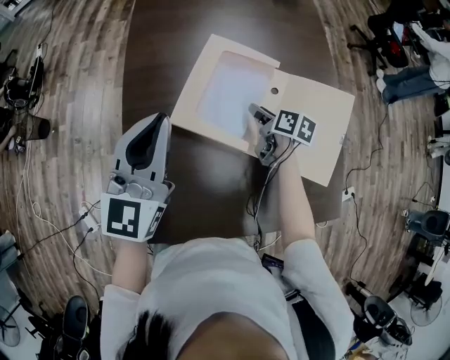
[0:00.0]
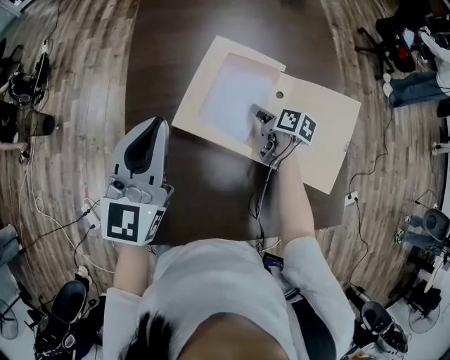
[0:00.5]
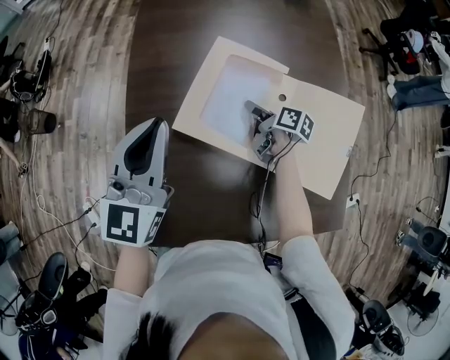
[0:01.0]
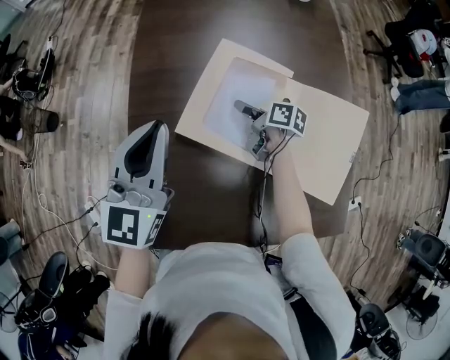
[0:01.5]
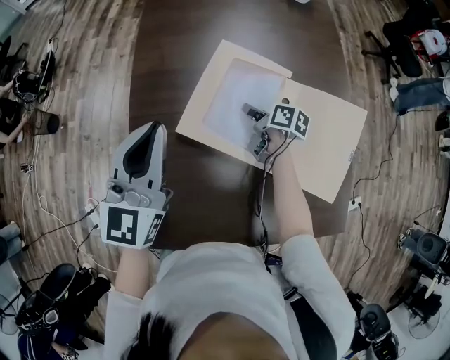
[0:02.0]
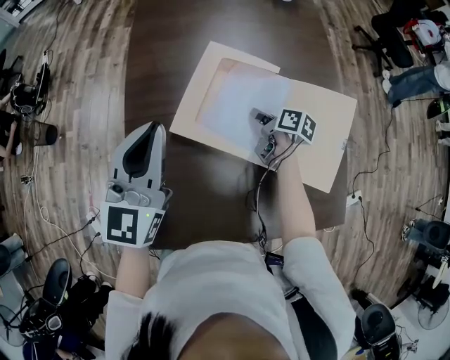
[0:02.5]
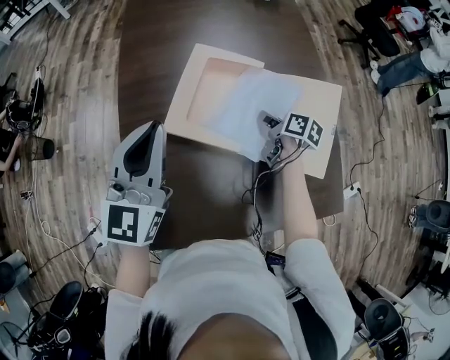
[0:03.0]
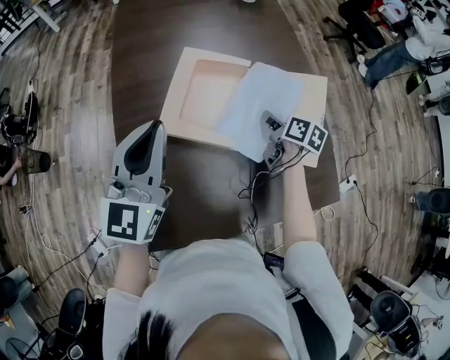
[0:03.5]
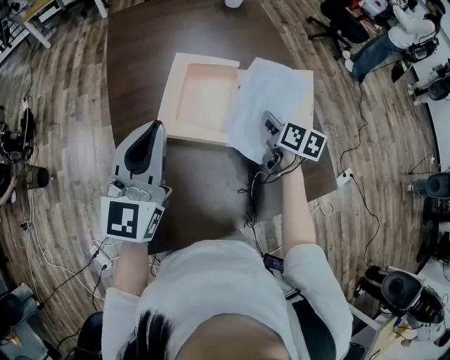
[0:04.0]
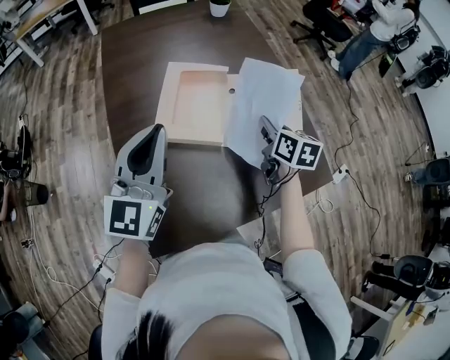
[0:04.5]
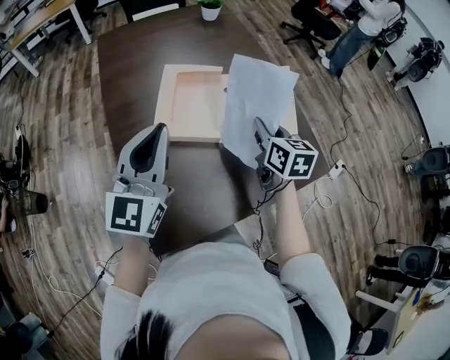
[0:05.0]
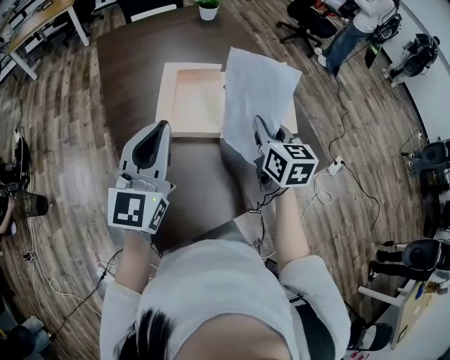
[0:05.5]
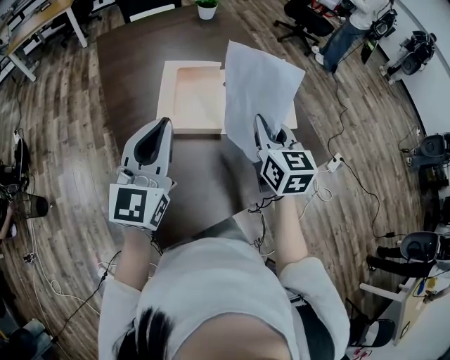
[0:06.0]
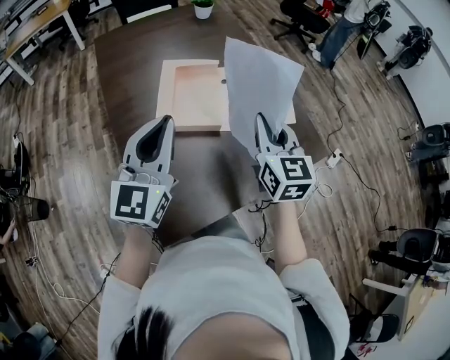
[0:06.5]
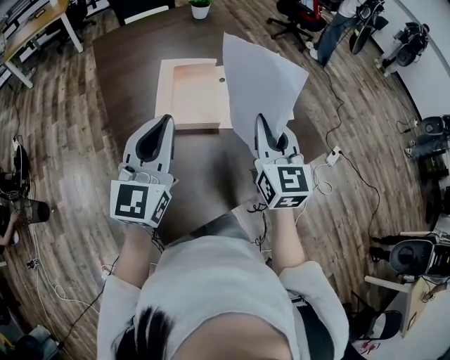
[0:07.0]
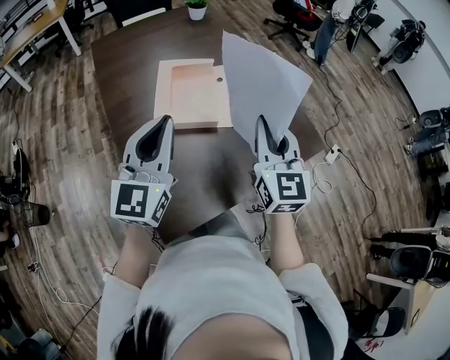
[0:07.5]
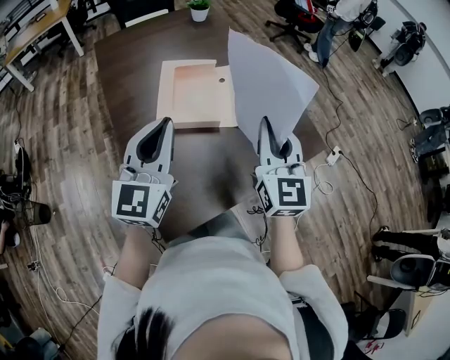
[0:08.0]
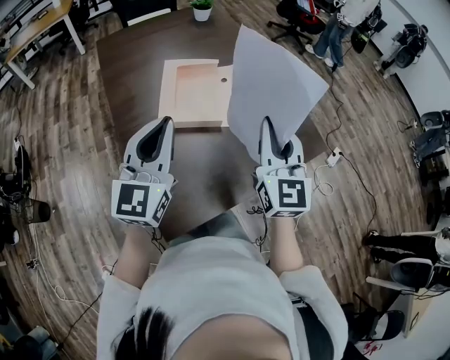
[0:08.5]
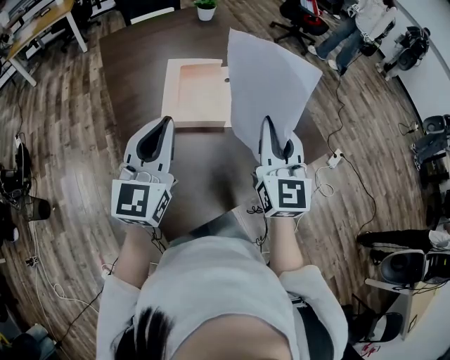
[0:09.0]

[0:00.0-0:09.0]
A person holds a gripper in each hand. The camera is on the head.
0:00.0 to 0:02.0: The right gripper goes approximately 5 cm forward and to the left, and closes its fingers.
0:02.0 to 0:04.5: The left gripper ends up some 15 cm from where it was. The right gripper shifts by roughly 30 cm, and swivels about 40 degrees.
0:04.5 to 0:07.0: The left gripper travels backward by some 5 cm; the right gripper is displaced backward and upward by some 20 cm, and swivels some 40 degrees.
0:07.0 to 0:09.0: The grippers stay close to where they were, moving slightly.

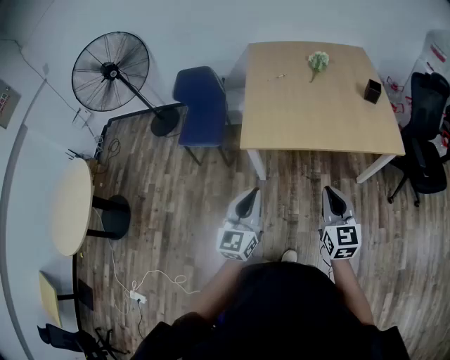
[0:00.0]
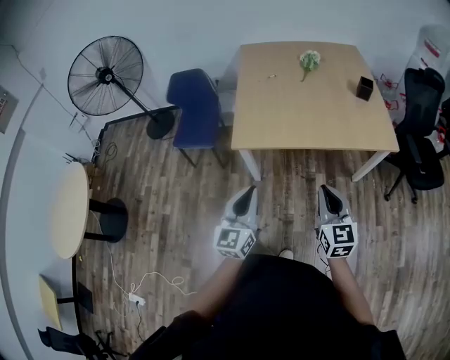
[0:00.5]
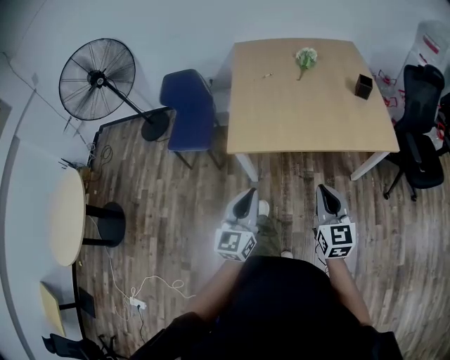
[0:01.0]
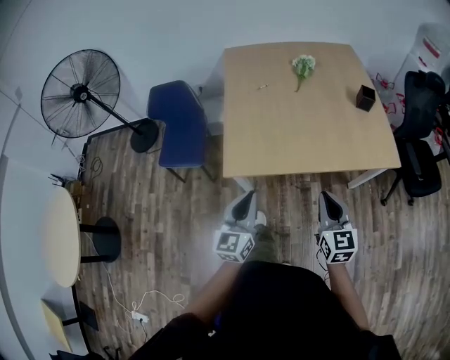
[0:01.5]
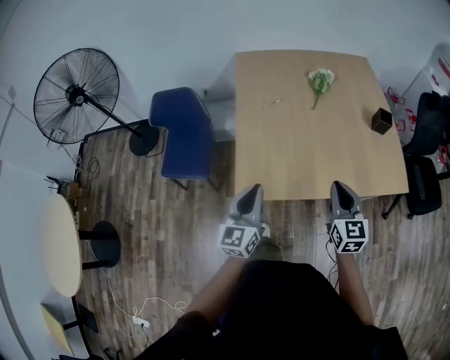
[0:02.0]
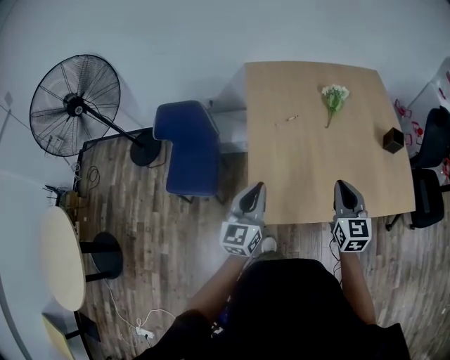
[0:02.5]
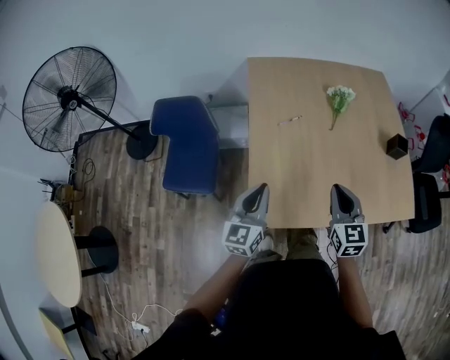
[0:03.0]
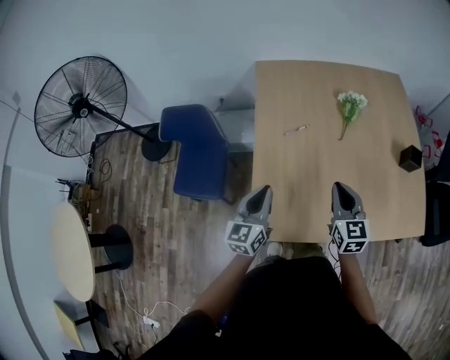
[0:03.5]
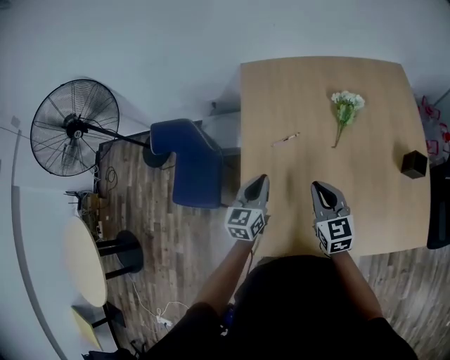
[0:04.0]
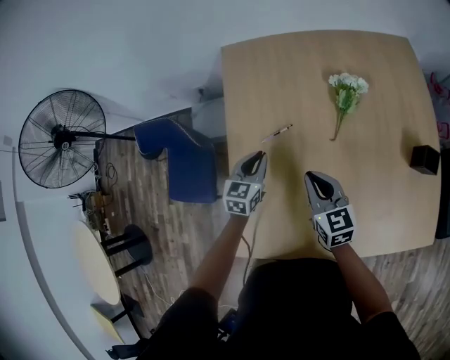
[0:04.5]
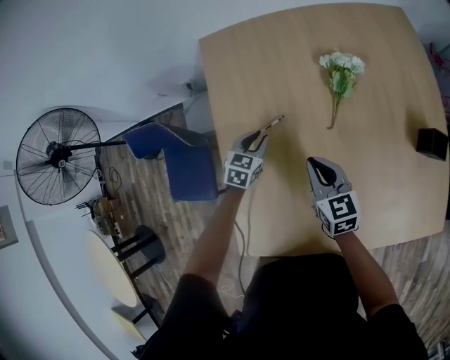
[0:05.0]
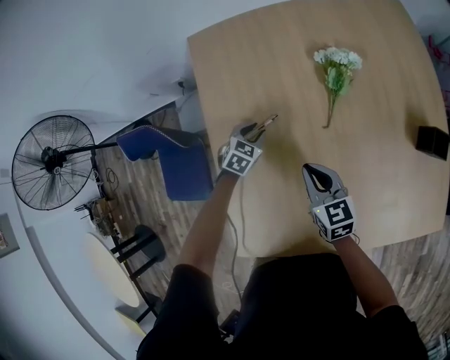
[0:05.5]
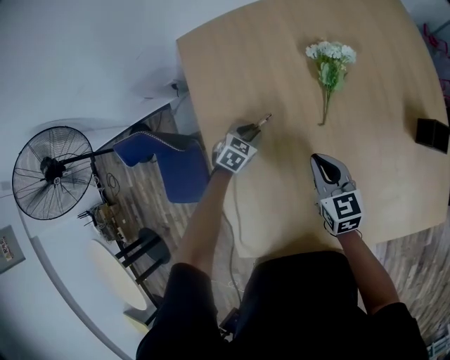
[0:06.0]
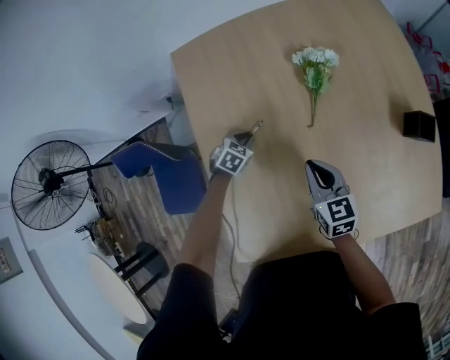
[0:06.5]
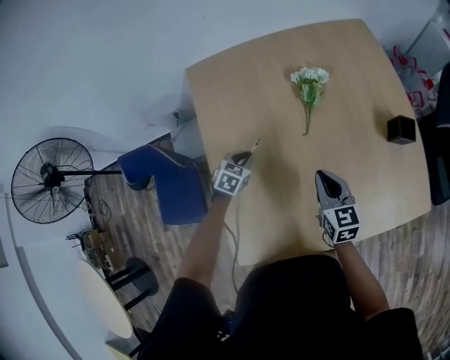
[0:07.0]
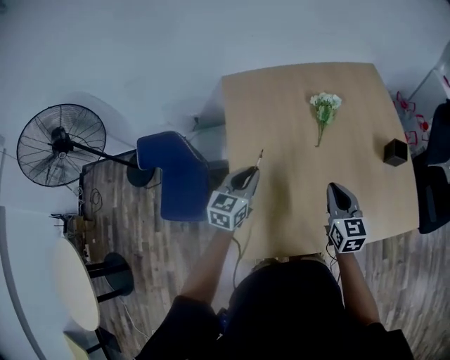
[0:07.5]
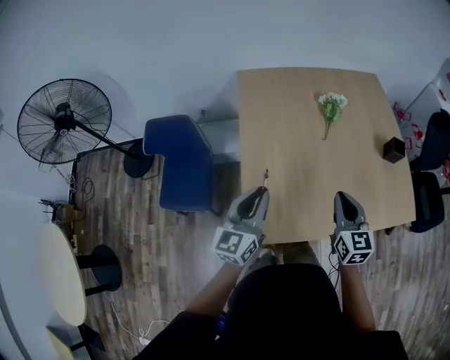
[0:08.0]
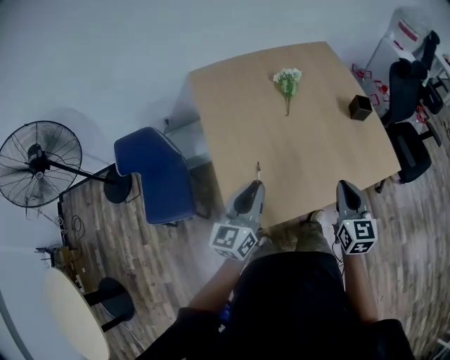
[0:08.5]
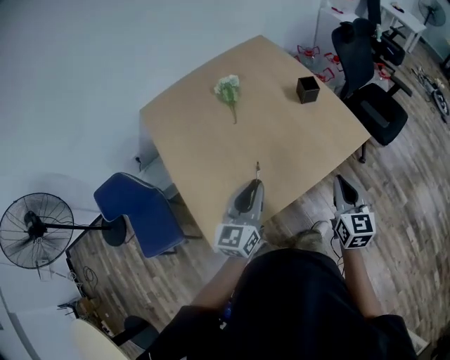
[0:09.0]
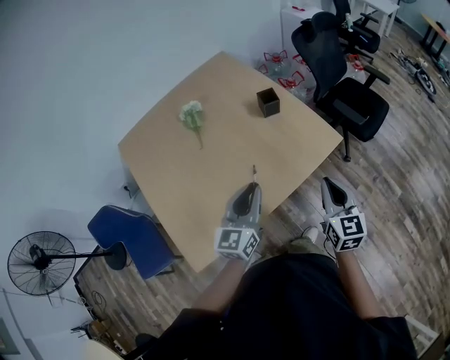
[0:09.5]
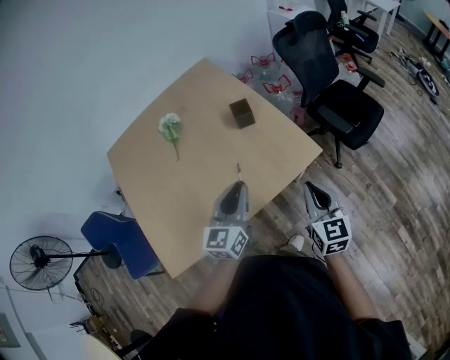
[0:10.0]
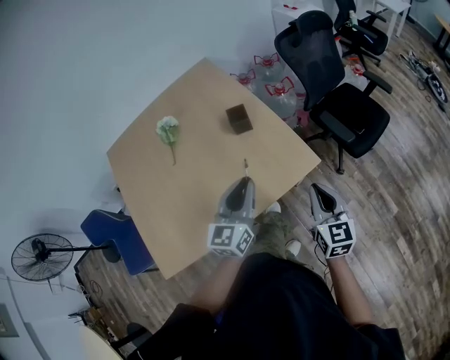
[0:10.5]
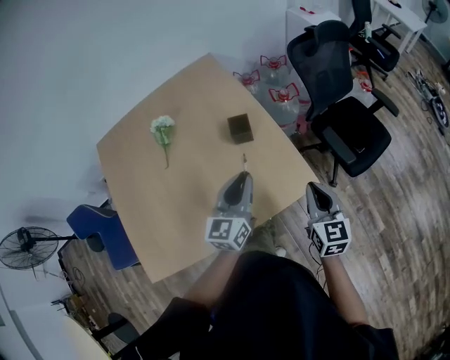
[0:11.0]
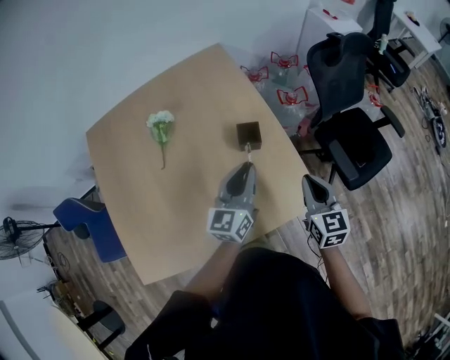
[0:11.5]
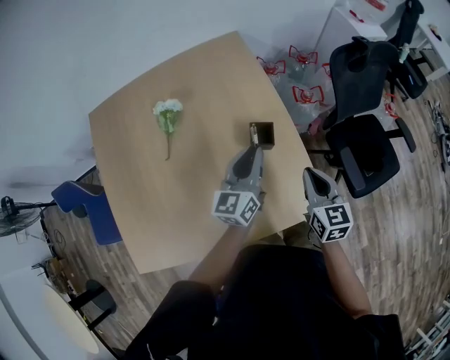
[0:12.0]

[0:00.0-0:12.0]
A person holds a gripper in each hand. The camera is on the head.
0:00.0 to 0:02.0: The grippers both shift forward by roughly 35 cm.
0:02.0 to 0:04.0: The two grippers go roughly 35 cm forward.
0:04.0 to 0:06.0: The right gripper travels downward, forward and to the right by roughly 25 cm. The left gripper moves downward and forward, approximately 35 cm, tips its fingers downward by some 40 degrees, and opens its fingers.
0:06.0 to 0:08.0: Both grippers travel together backward and upward, about 50 cm. The right gripper turns by approximately 20 degrees. The left gripper angles its fingers upward, by approximately 60 degrees.
0:08.0 to 0:10.0: The two grippers travel together, roughly 60 cm. The right gripper turns by about 20 degrees; the left gripper turns by roughly 20 degrees.
0:10.0 to 0:12.0: Both grippers travel together forward, about 35 cm.

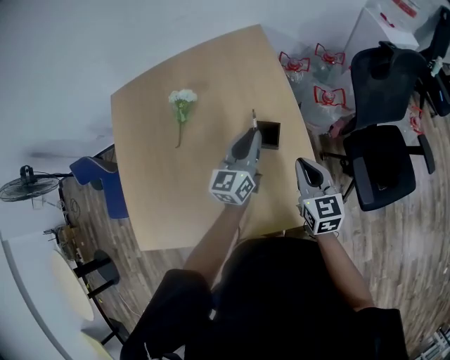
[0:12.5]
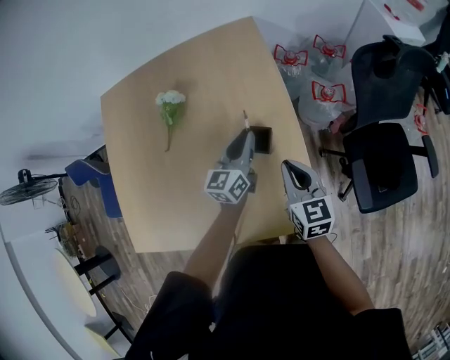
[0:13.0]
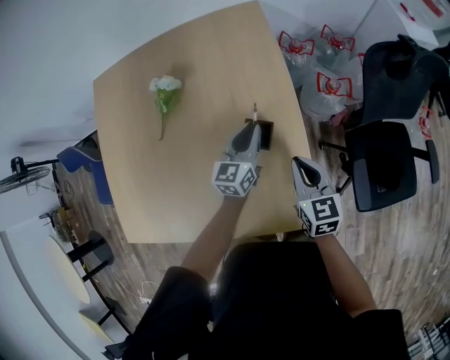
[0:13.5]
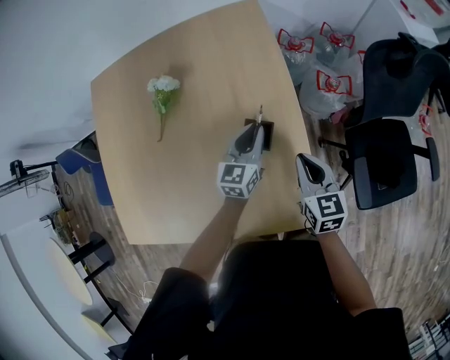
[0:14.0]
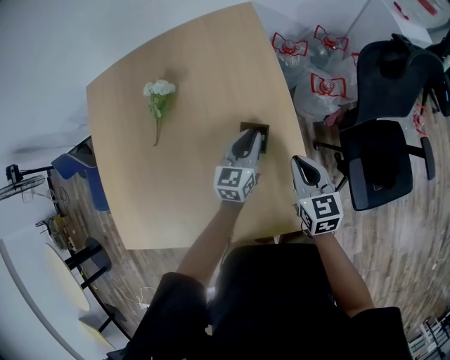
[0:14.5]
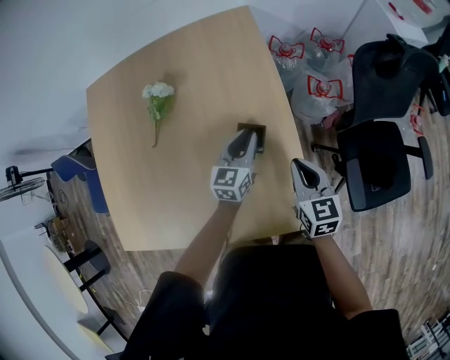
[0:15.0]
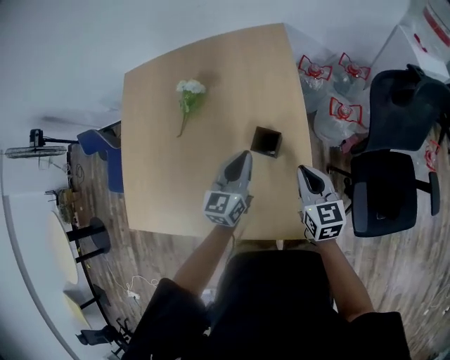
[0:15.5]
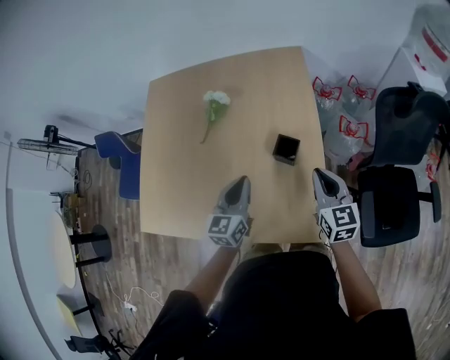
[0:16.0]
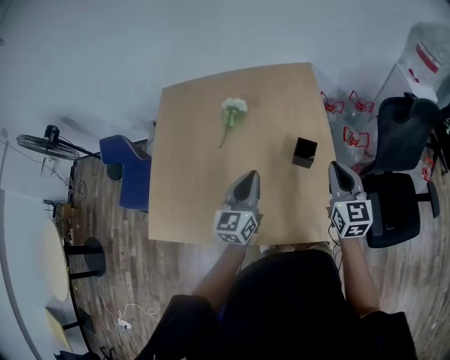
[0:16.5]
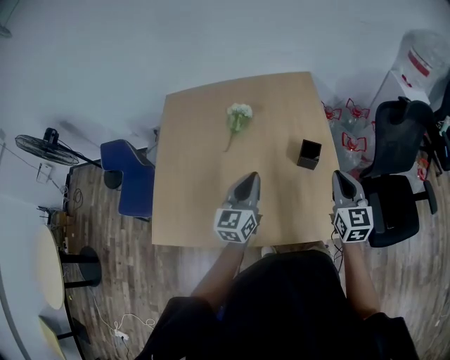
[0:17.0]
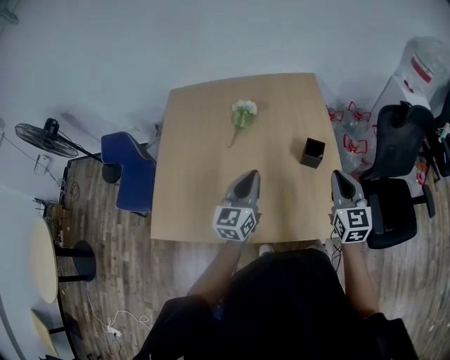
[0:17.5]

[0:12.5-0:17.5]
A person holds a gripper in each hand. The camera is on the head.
0:12.5 to 0:15.0: The right gripper goes approximately 10 cm downward and forward, while the left gripper is displaced downward by about 15 cm.
0:15.0 to 0:17.5: The right gripper is displaced upward, backward and to the left by roughly 30 cm, and changes its angle by approximately 20 degrees. The left gripper heads to the left, backward and upward, covering roughly 40 cm.

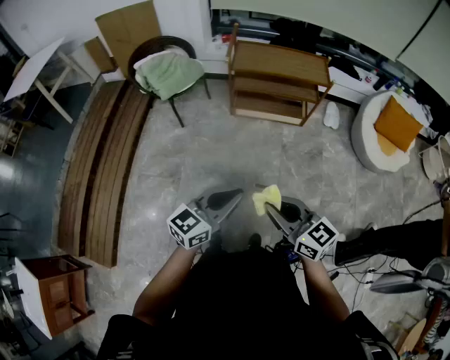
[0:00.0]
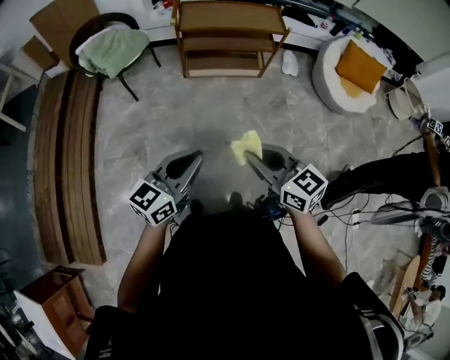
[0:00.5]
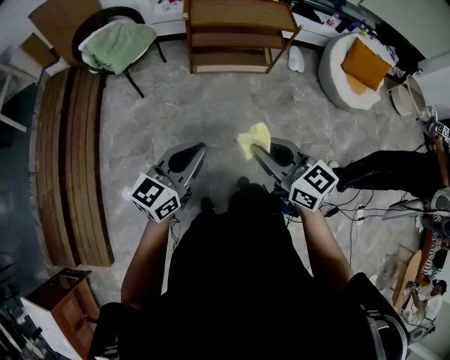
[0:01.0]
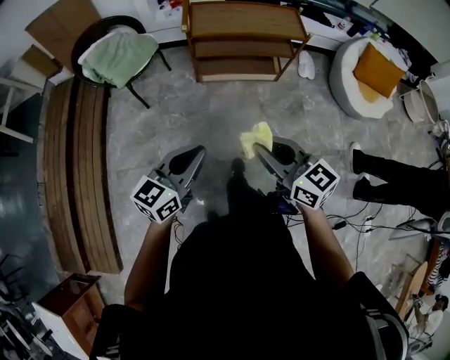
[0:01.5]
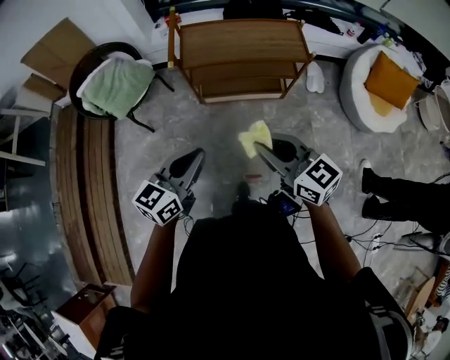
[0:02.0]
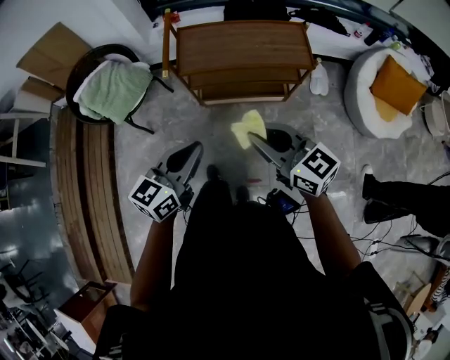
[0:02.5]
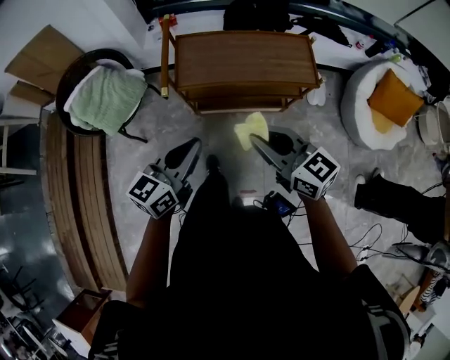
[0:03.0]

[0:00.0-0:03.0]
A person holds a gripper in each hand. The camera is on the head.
0:00.0 to 0:01.5: The left gripper goes approximately 15 cm forward and to the left; the right gripper moves forward, some 15 cm.
0:01.5 to 0:03.0: Both grippers move forward, about 35 cm.
